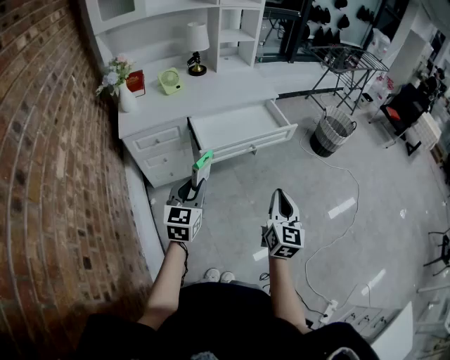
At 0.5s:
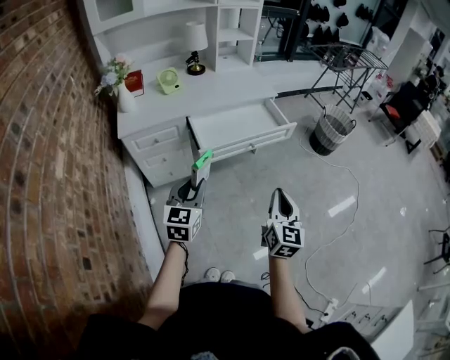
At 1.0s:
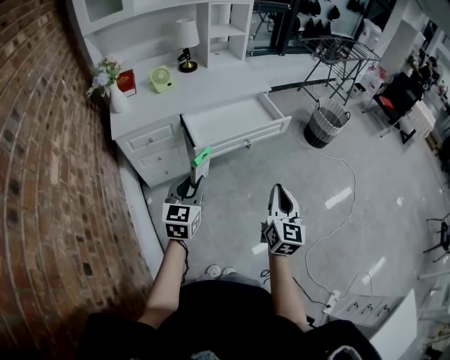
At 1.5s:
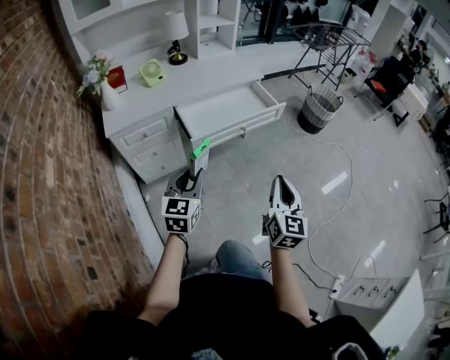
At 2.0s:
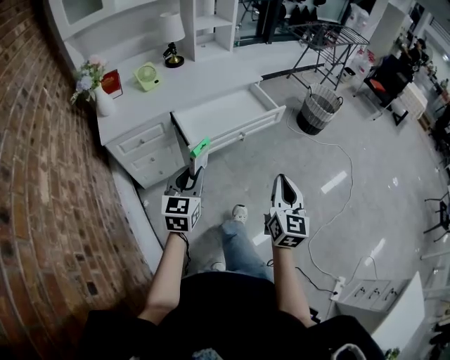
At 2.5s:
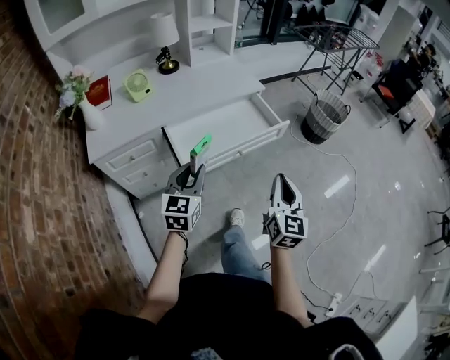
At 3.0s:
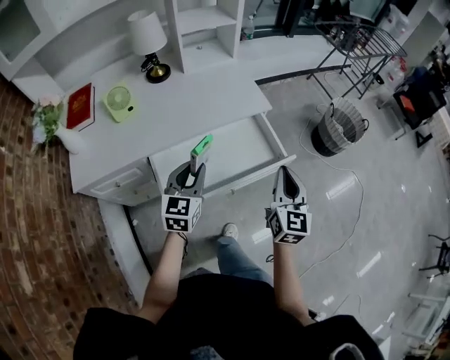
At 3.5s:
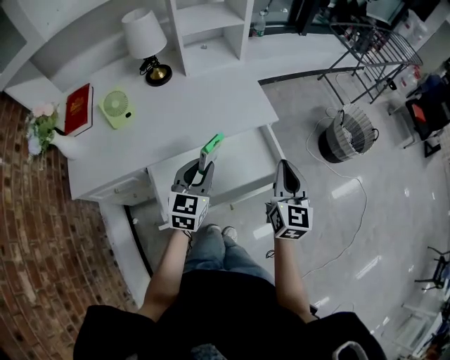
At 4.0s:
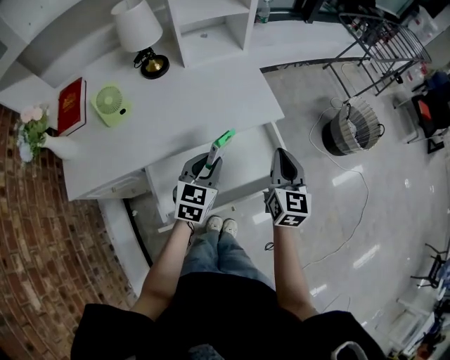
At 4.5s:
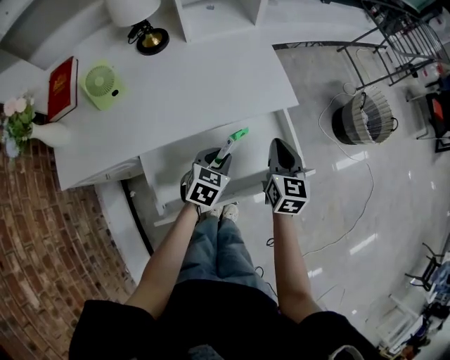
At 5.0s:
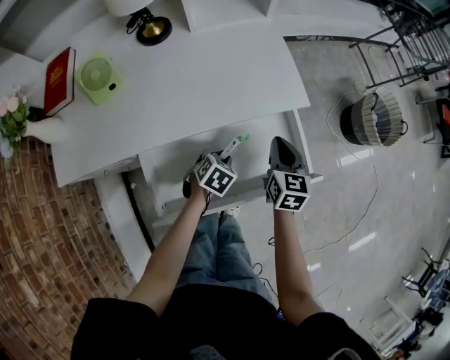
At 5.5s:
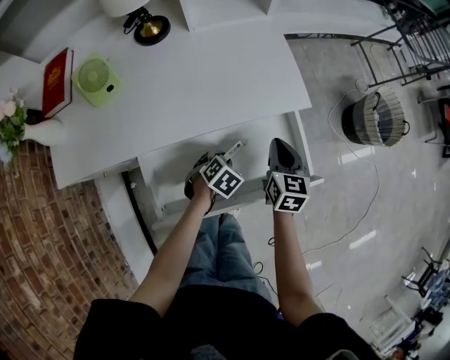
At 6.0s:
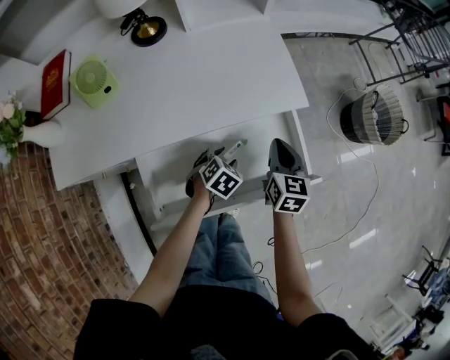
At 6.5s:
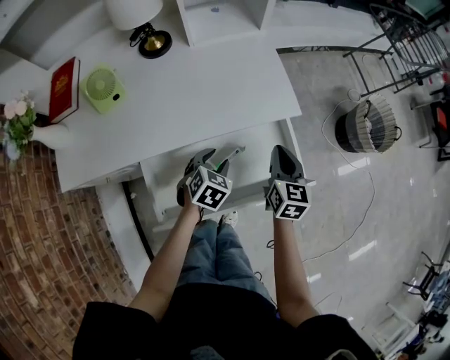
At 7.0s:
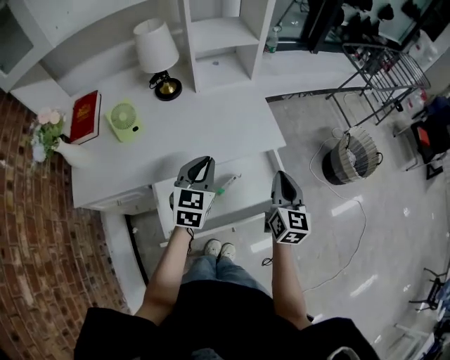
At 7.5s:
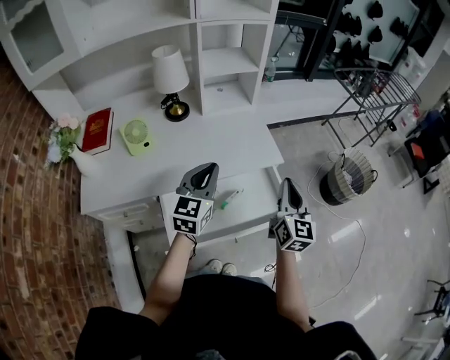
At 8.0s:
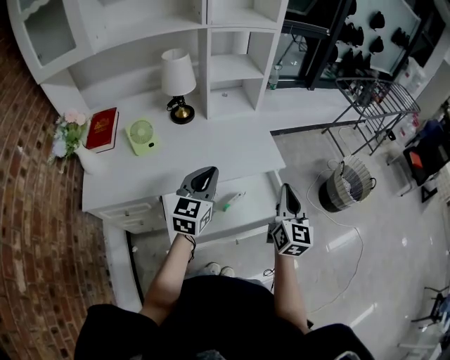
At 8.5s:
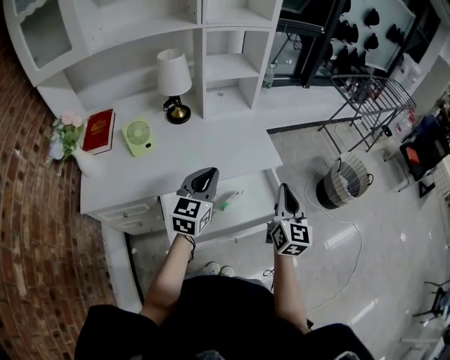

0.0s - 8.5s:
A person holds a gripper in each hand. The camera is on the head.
0.0s - 2.0s: The left gripper travels forward by roughly 5 cm.
2.0s - 4.0s: The two grippers travel together, forward, some 60 cm.
4.0s - 6.5s: The left gripper heads downward, covering some 15 cm, swivels some 30 degrees, and opens up. The right gripper moves downward and forward, roughly 15 cm.
6.5s - 8.5s: The left gripper goes about 30 cm upward, tips its fingers upward by some 50 degrees, and closes its fingers. The right gripper travels upward and backward by approximately 25 cm, and changes its angle by roughly 20 degrees.

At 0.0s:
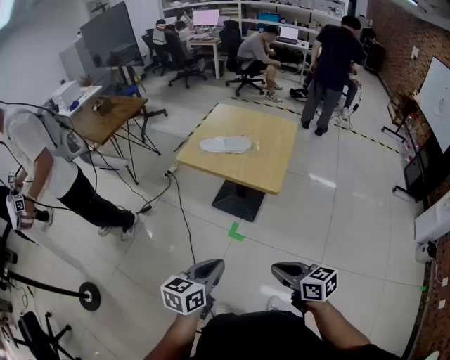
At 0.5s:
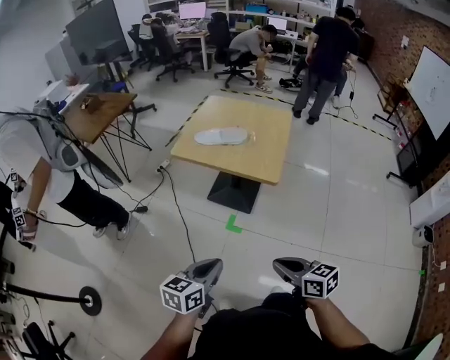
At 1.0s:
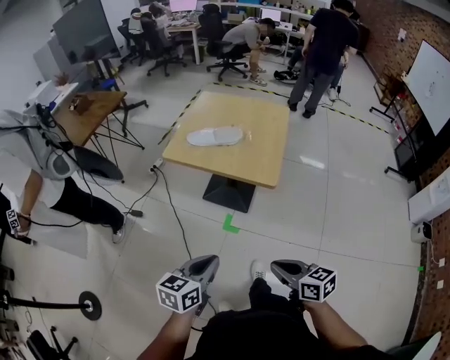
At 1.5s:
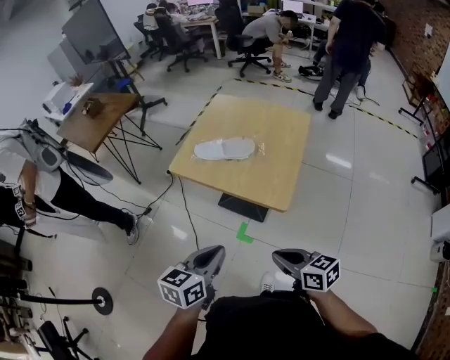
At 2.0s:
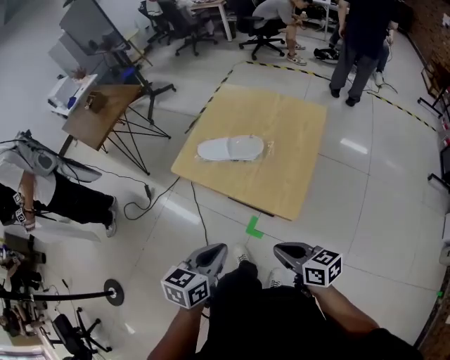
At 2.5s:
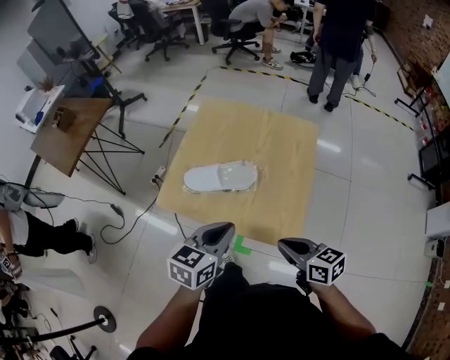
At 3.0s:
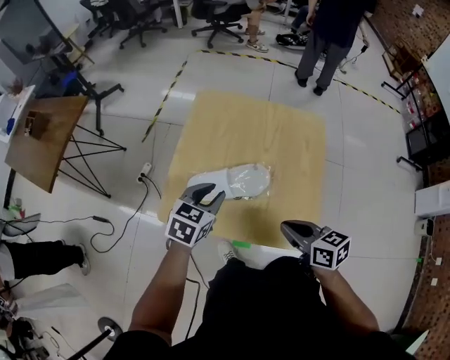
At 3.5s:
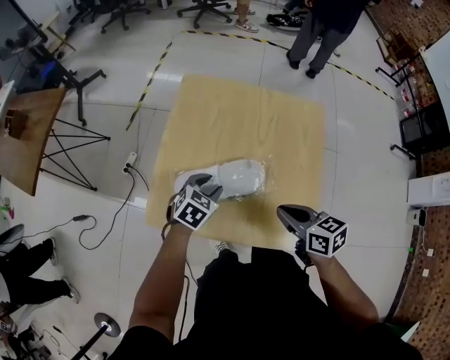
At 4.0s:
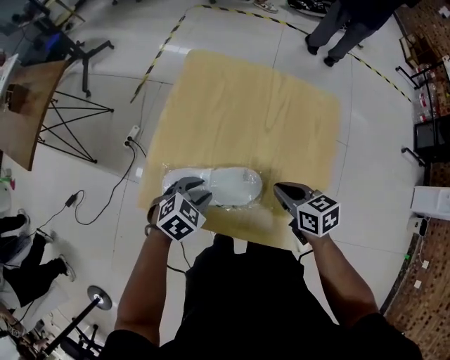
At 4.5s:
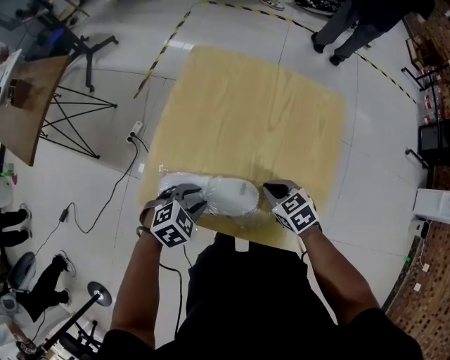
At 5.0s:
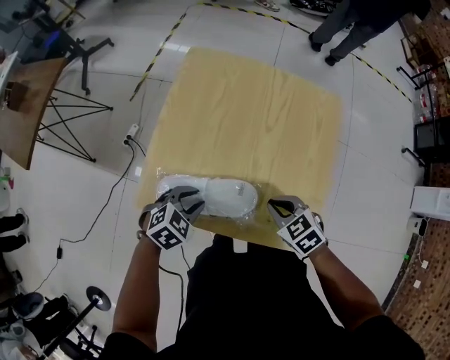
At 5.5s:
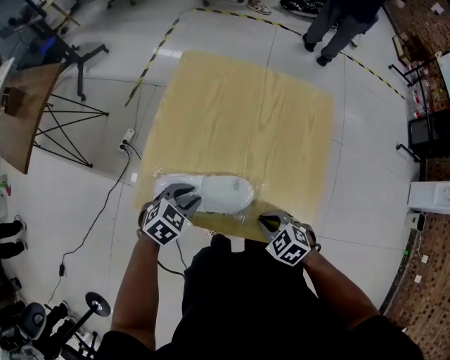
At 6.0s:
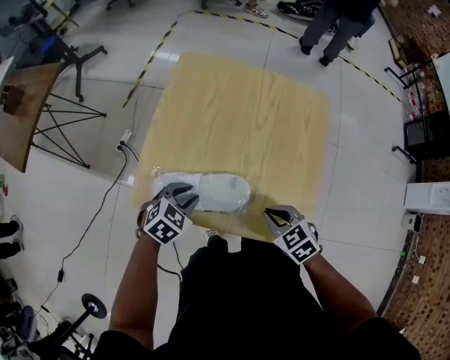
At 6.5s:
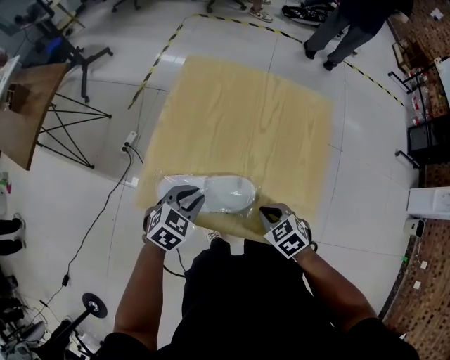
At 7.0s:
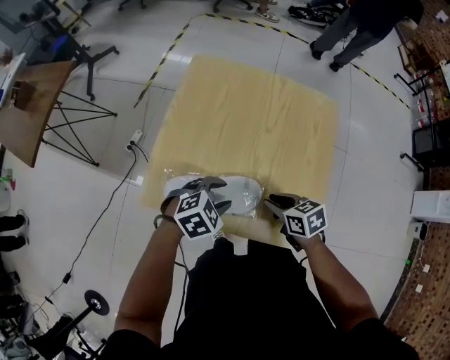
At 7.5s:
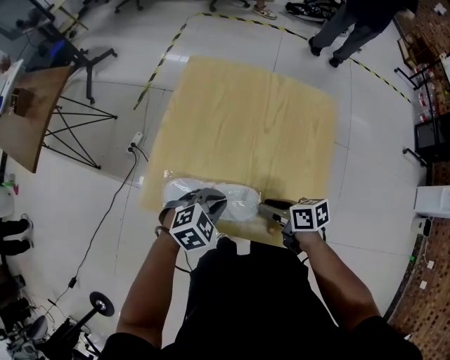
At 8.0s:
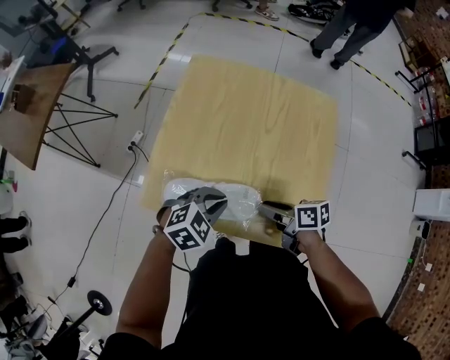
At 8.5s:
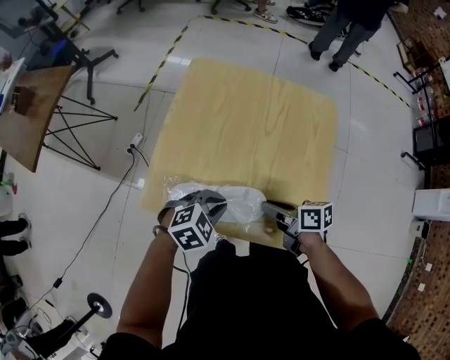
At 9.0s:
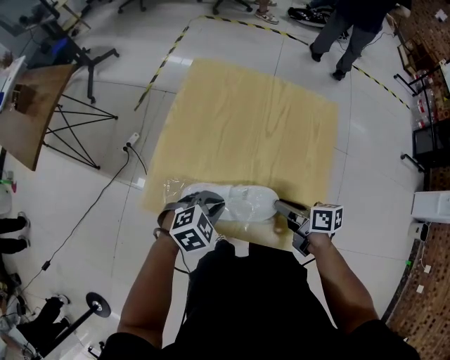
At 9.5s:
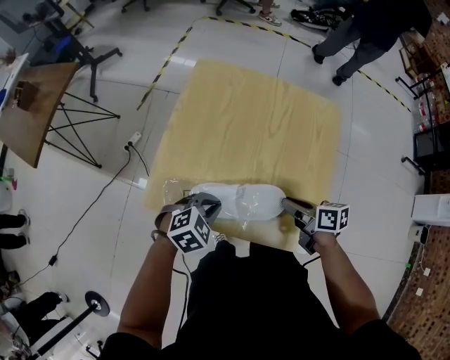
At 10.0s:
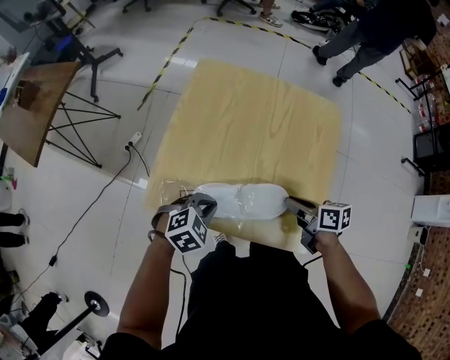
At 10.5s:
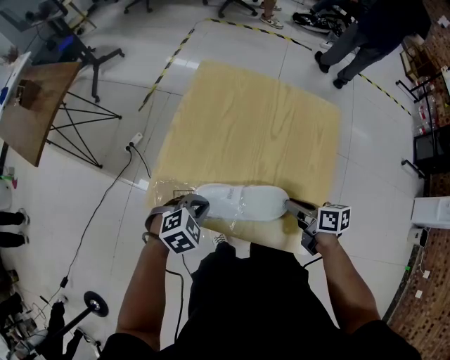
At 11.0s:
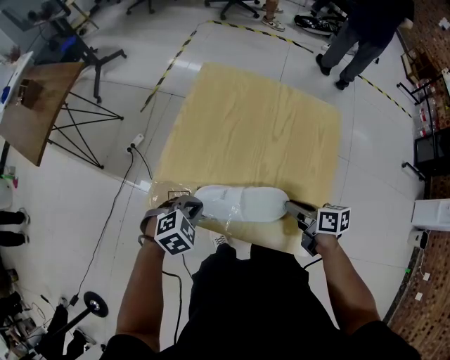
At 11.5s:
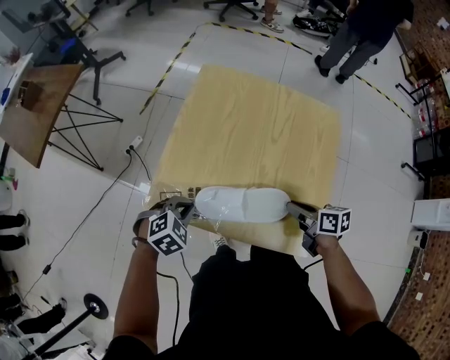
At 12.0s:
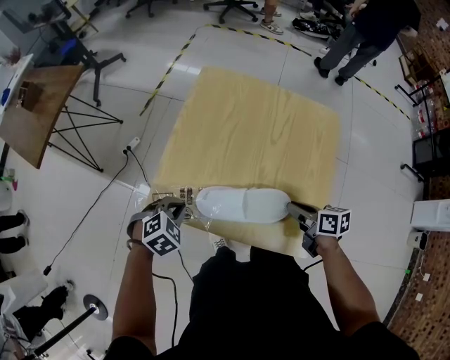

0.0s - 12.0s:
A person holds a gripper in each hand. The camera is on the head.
0.0s - 2.0s: Both grippers travel together forward, some 25 cm.
2.0s - 4.0s: The right gripper shifts some 35 cm forward, and rotates approximately 30 degrees. The left gripper travels forward and downward by about 40 cm, turns by approximately 50 degrees, and opens its fingers.
4.0s - 6.0s: The right gripper moves backward, some 10 cm, and changes its angle by roughly 30 degrees.
6.0s - 8.0s: The right gripper rotates around the line of its fingers by about 50 degrees, clockwise from behind, and opens up. Meanwhile the left gripper ends up about 10 cm from where it was, and closes.
8.0s - 10.0s: The left gripper changes place by approximately 5 cm. Meanwhile the right gripper changes place by approximately 5 cm.
10.0s - 12.0s: The left gripper heads to the left, covering roughly 10 cm.

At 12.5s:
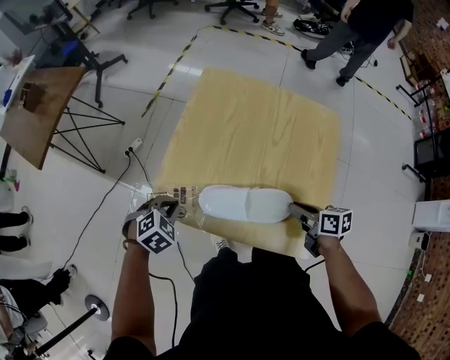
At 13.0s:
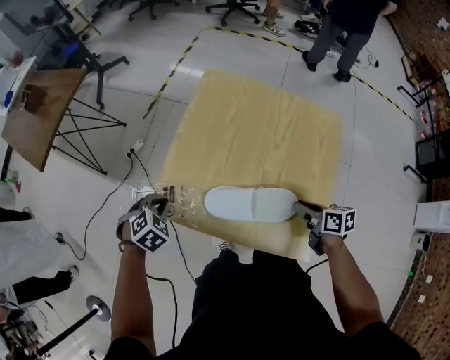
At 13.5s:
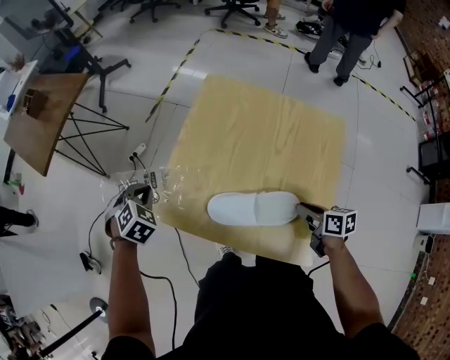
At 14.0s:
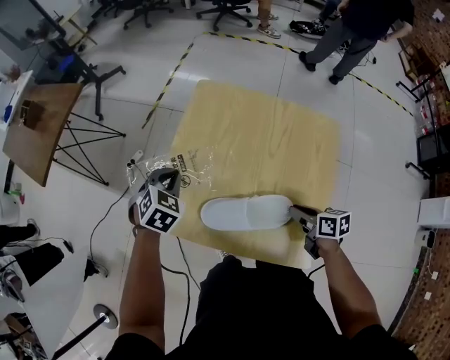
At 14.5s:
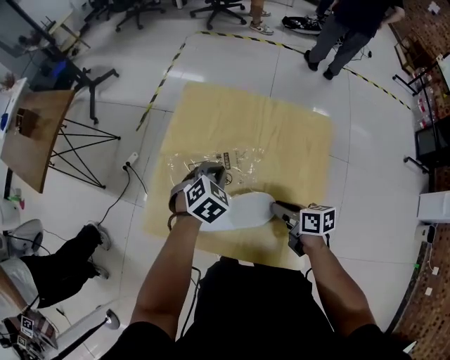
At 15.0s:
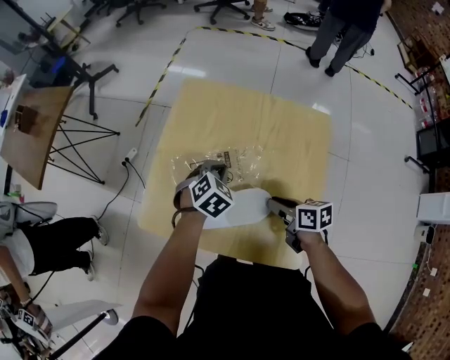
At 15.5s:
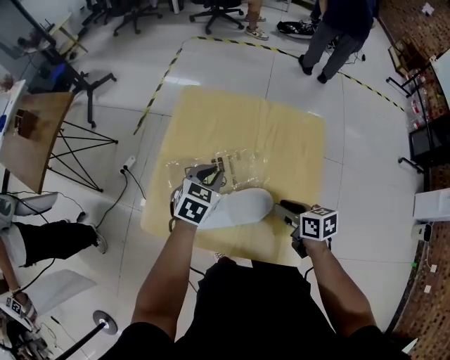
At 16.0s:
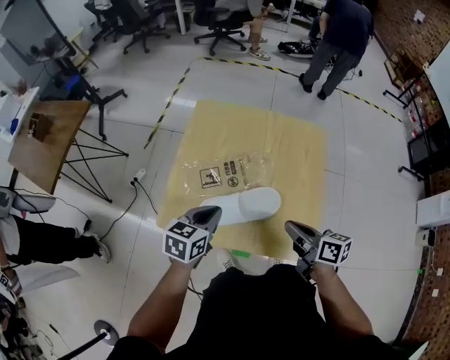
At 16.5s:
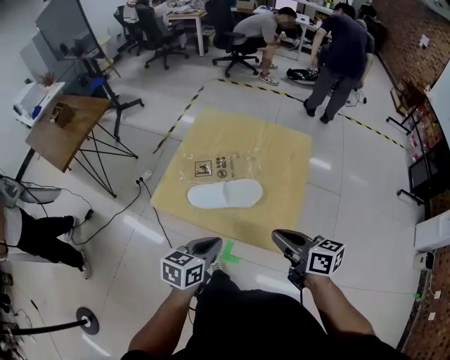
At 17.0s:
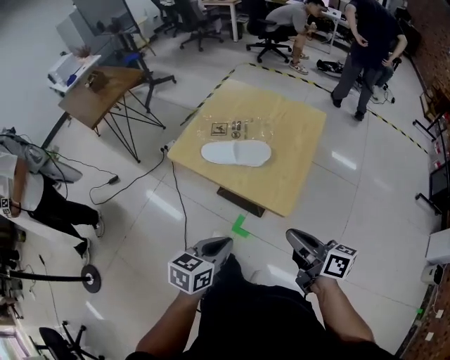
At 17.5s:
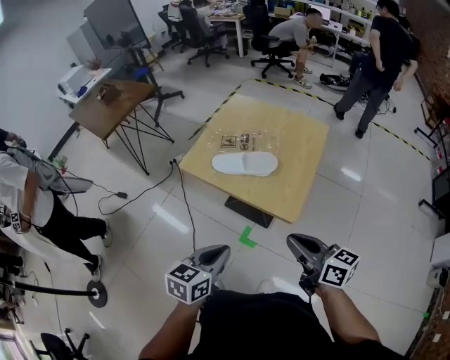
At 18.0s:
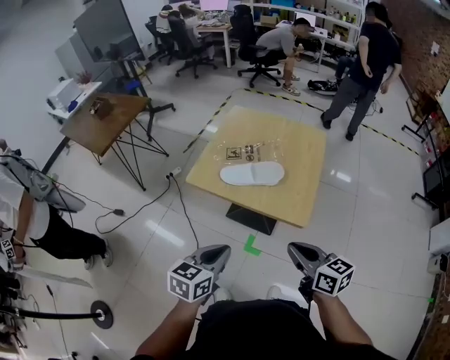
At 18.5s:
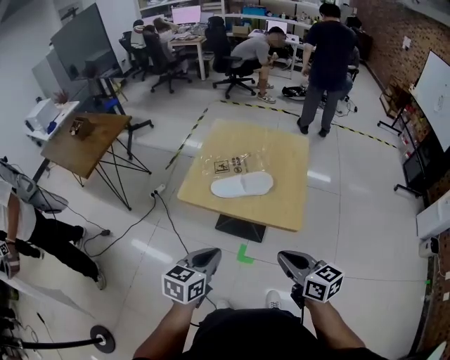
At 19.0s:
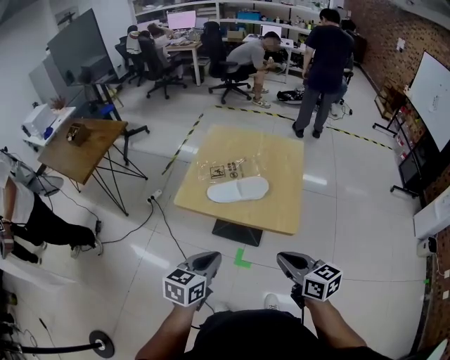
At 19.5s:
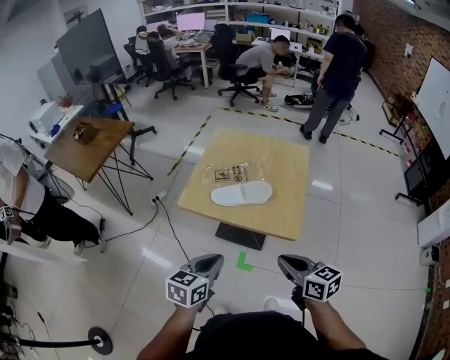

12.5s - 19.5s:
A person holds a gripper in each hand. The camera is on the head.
12.5s - 14.5s: The left gripper moves to the right and forward, some 25 cm.
14.5s - 16.0s: The right gripper goes roughly 15 cm upward and backward; the left gripper shifts about 15 cm backward, upward and to the left, and changes its angle by about 40 degrees.
16.0s - 17.5s: The right gripper heads backward and upward, covering about 30 cm, and changes its angle by about 30 degrees. The left gripper travels backward by some 35 cm.
17.5s - 19.5s: The left gripper goes roughly 10 cm to the left and forward, while the right gripper shifts some 10 cm to the left, and swivels roughly 20 degrees.
